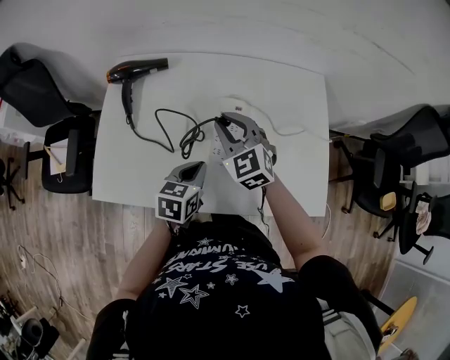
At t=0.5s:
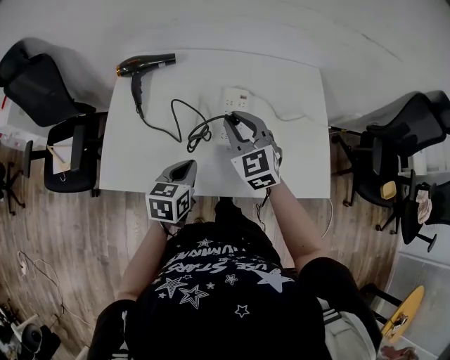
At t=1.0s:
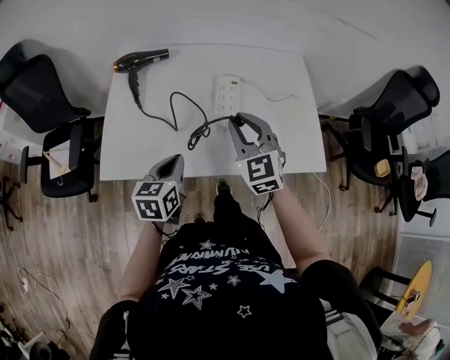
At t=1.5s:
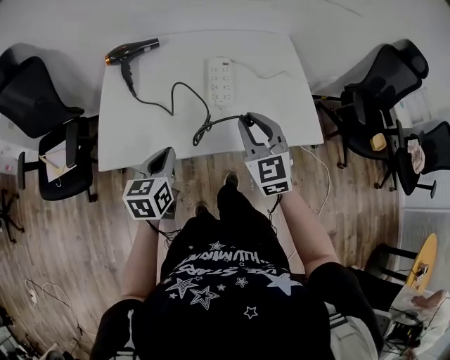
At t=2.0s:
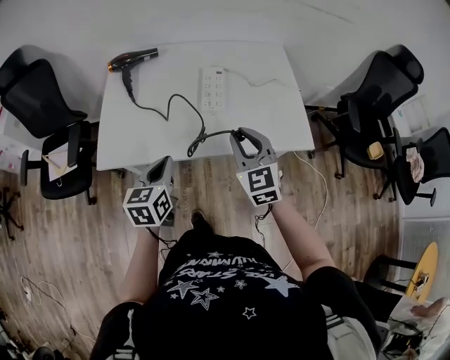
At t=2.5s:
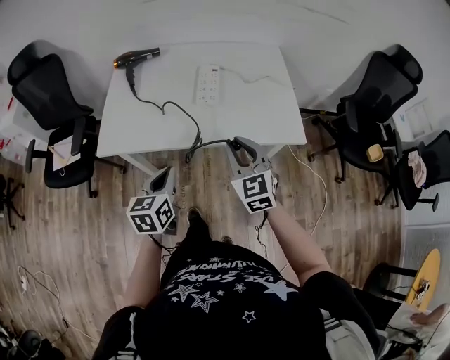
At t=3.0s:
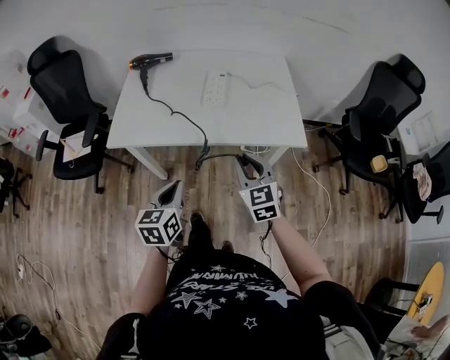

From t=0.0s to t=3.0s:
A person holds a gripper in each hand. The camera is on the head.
From t=0.0s to t=1.5s: The left gripper travels backward and to the left by approximately 20 cm. Meanwhile the right gripper shifts approximately 25 cm backward, and changes its angle by roughly 20 degrees.
From t=1.5s to t=3.0s: Both grippers move backward and to the right, approximately 20 cm.

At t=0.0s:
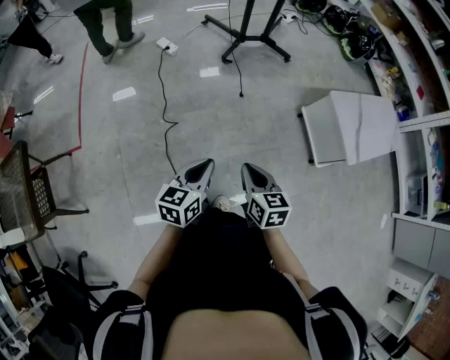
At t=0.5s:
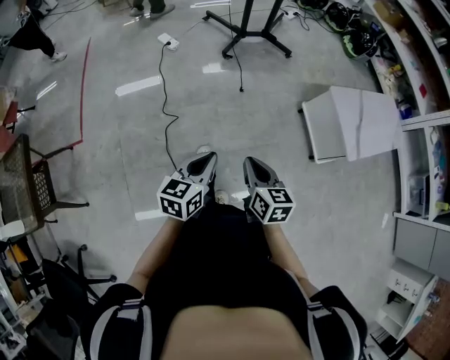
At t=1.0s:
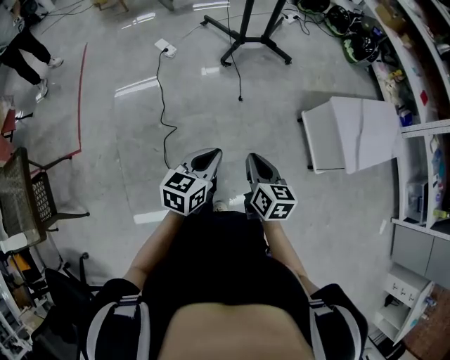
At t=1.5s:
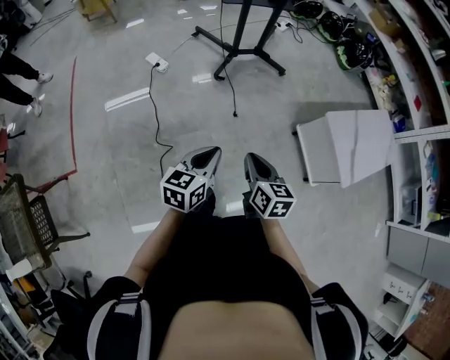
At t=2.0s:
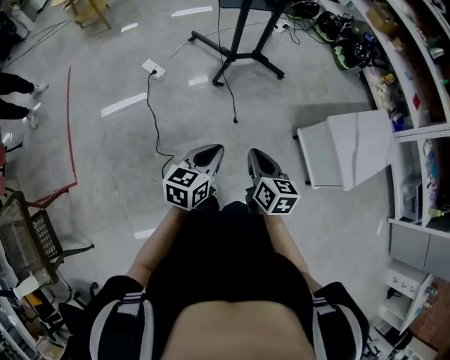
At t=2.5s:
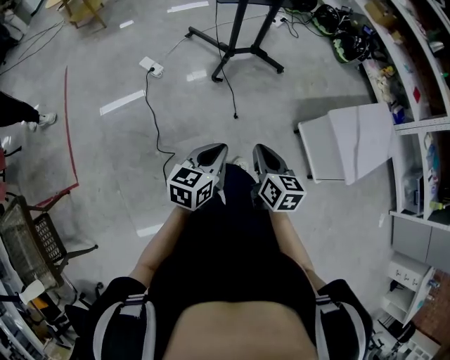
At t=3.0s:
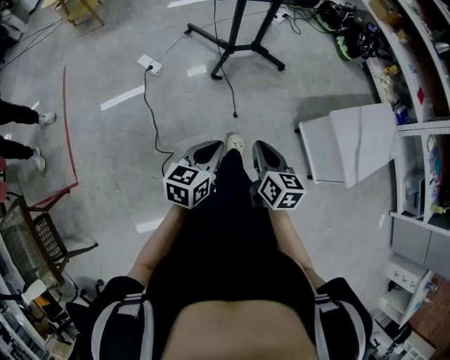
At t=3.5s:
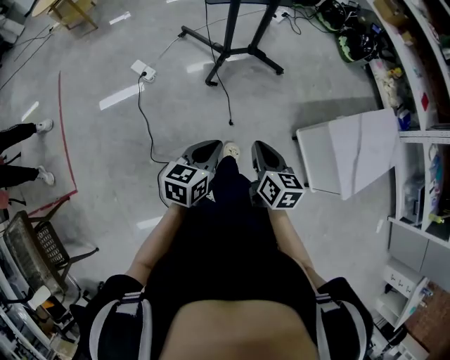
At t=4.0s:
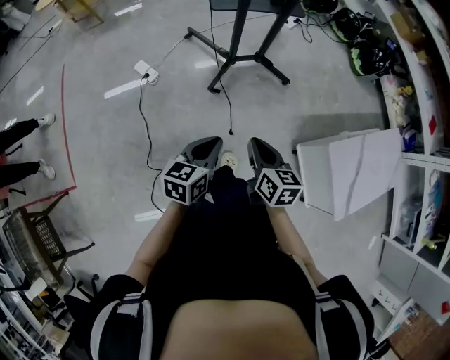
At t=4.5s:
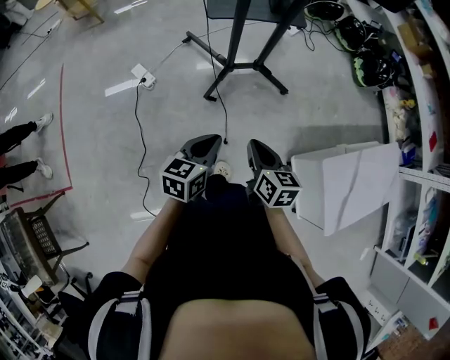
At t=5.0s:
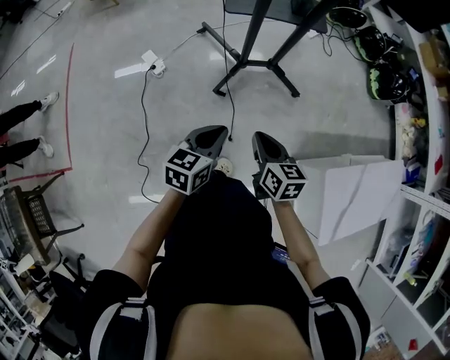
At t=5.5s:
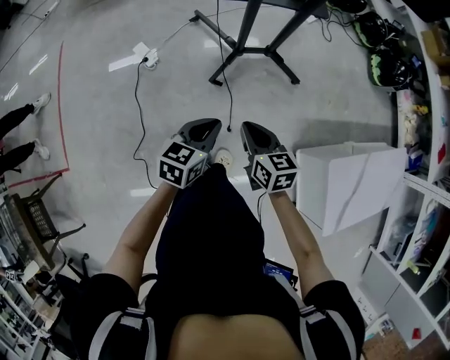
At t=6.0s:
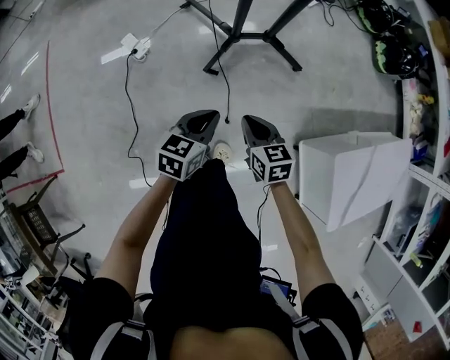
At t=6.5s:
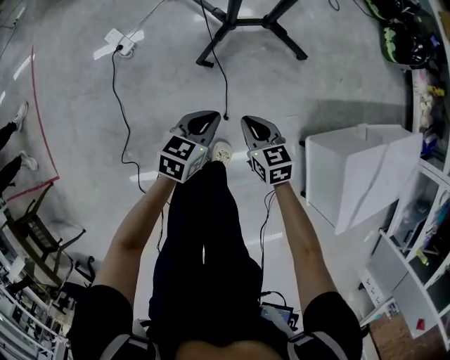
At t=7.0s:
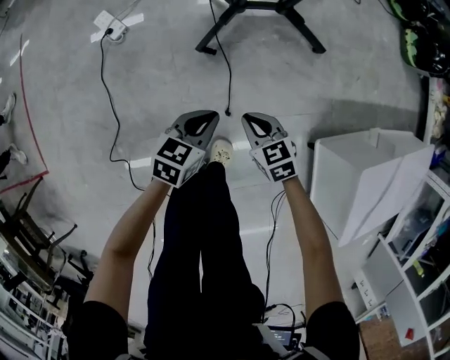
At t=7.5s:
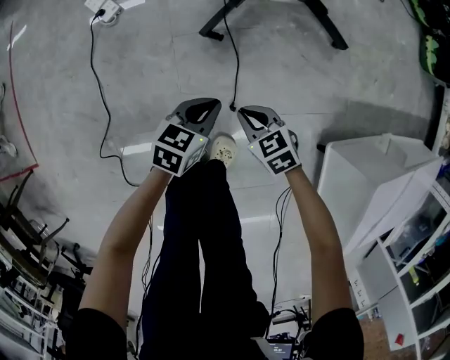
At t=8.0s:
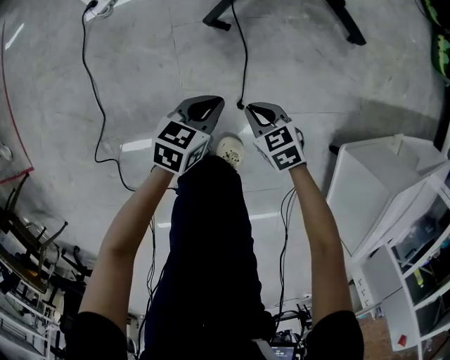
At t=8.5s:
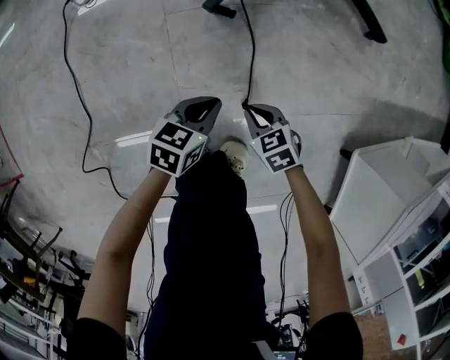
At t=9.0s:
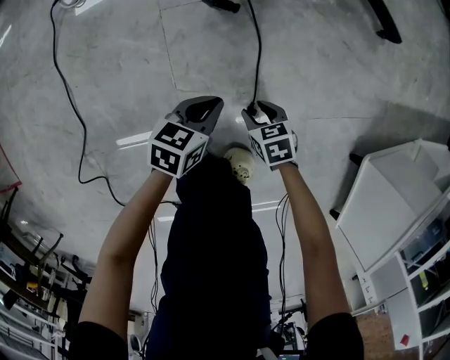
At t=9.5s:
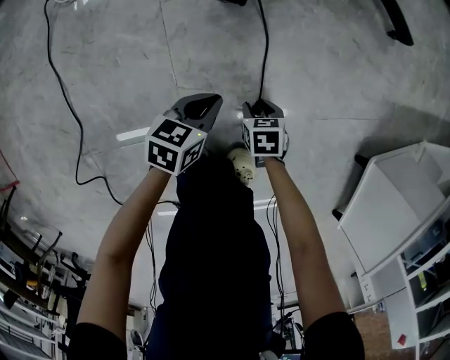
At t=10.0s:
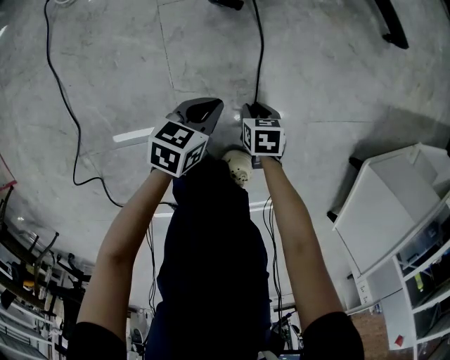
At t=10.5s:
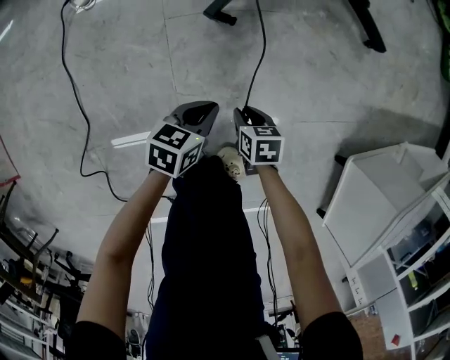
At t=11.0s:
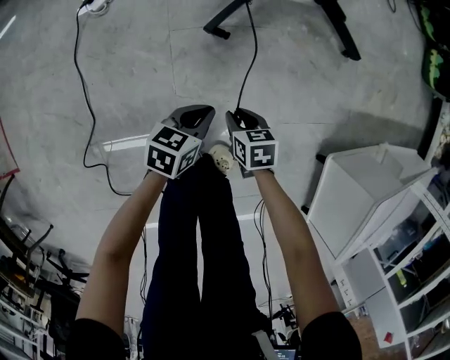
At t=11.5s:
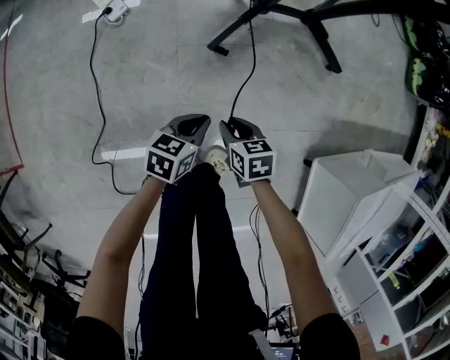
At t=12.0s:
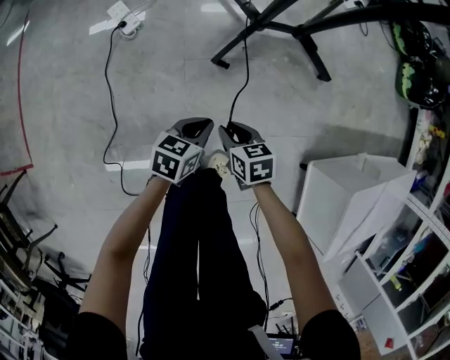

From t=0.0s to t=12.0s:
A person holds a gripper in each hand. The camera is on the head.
From t=0.0s to t=2.0s: The grippers both shift forward by roughly 30 cm.
From t=2.0s to t=4.0s: Both grippers move forward, about 25 cm.
From t=4.0s to t=6.0s: The right gripper goes some 20 cm downward and forward, and swivels roughly 20 degrees; the left gripper moves forward and downward, about 20 cm.
From t=6.0s to t=8.0s: Both grippers travel together downward, roughly 40 cm. The right gripper rotates approximately 30 degrees.
From t=8.0s to t=10.0s: The two grippers go some 20 cm downward. The right gripper swivels about 40 degrees, and opens up.
From t=10.0s to t=12.0s: Both grippers travel together upward, about 40 cm. The right gripper turns by roughly 20 degrees.

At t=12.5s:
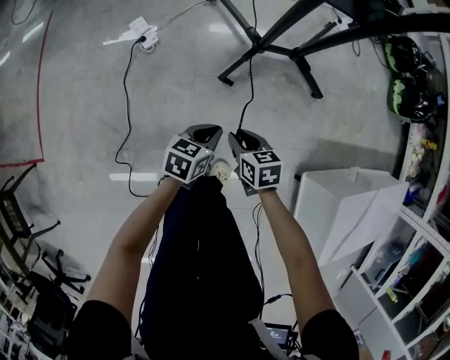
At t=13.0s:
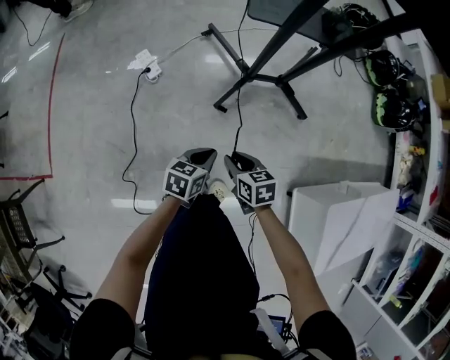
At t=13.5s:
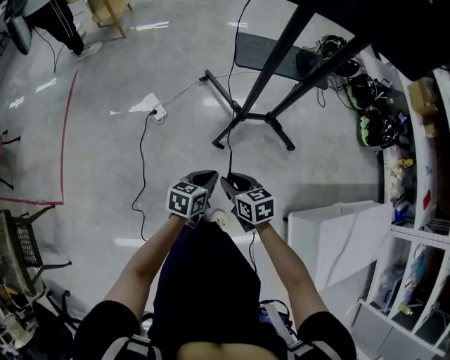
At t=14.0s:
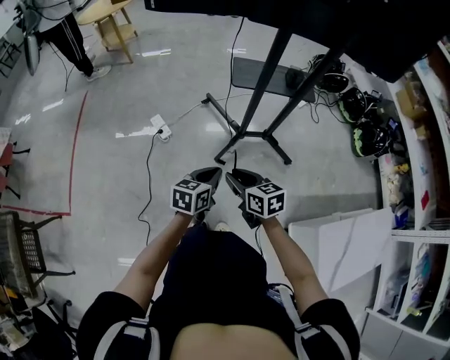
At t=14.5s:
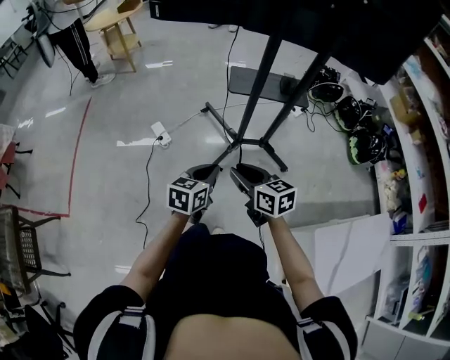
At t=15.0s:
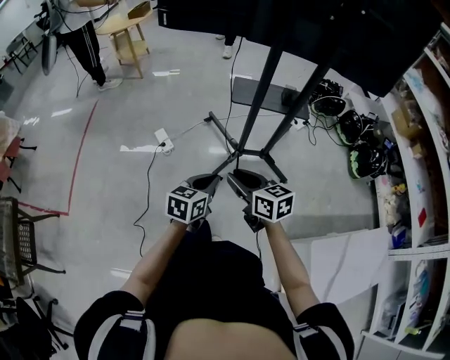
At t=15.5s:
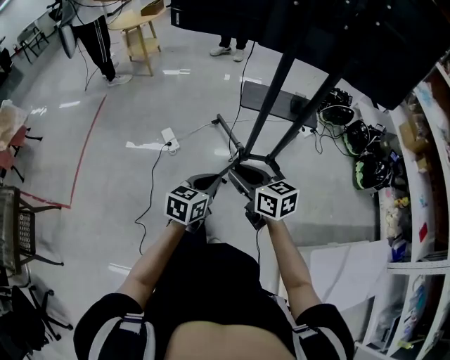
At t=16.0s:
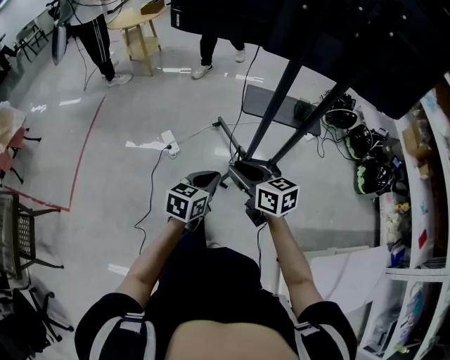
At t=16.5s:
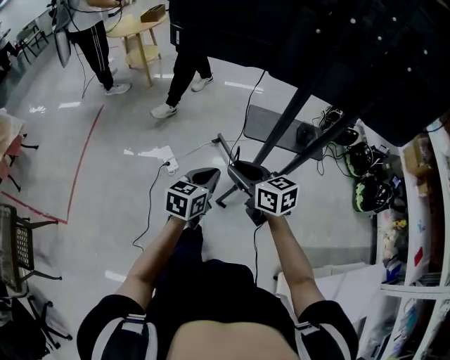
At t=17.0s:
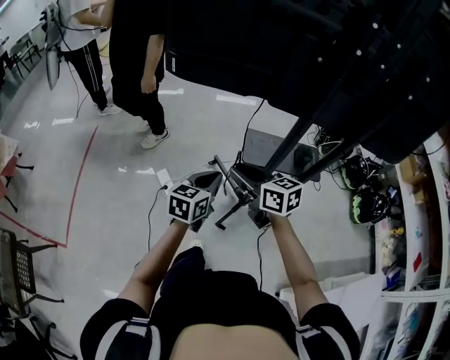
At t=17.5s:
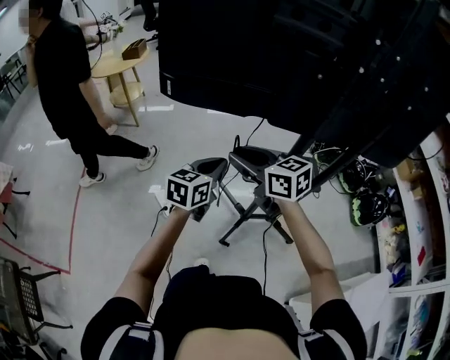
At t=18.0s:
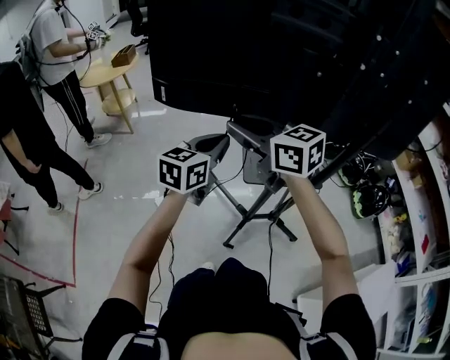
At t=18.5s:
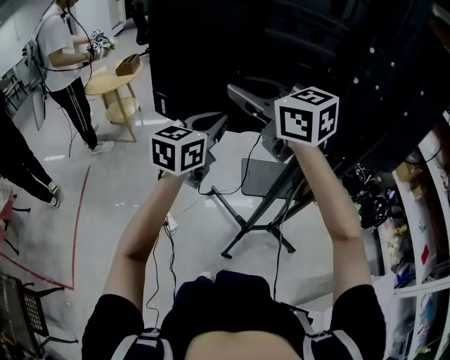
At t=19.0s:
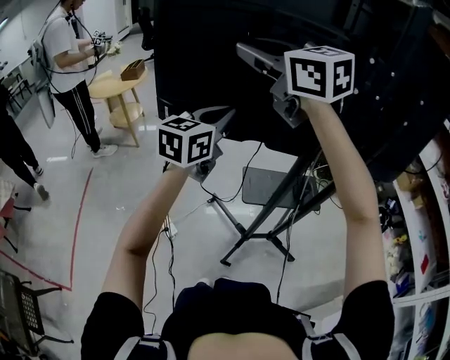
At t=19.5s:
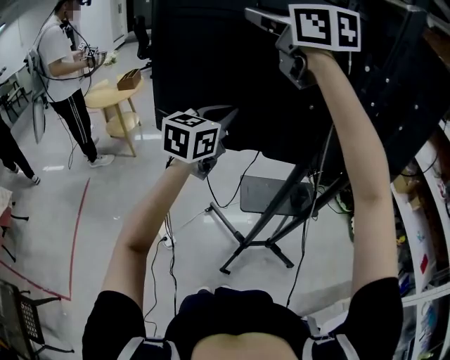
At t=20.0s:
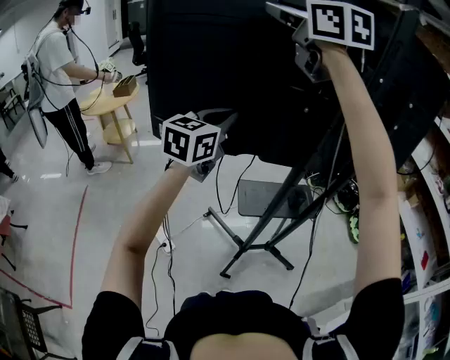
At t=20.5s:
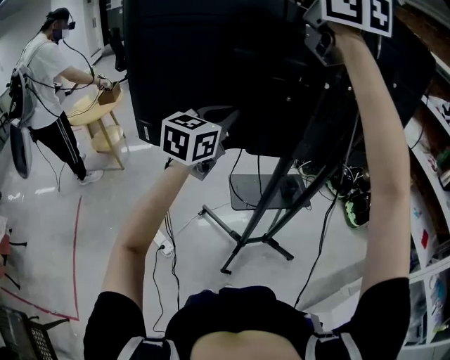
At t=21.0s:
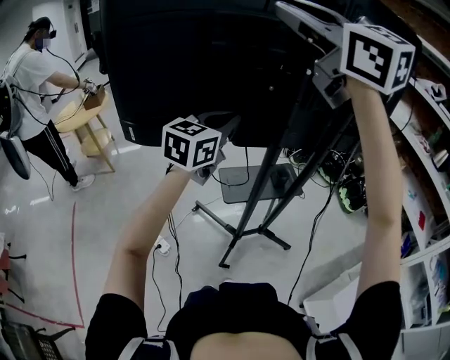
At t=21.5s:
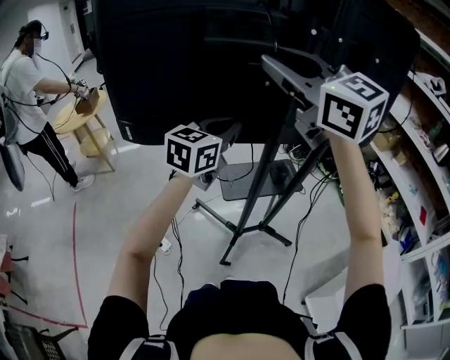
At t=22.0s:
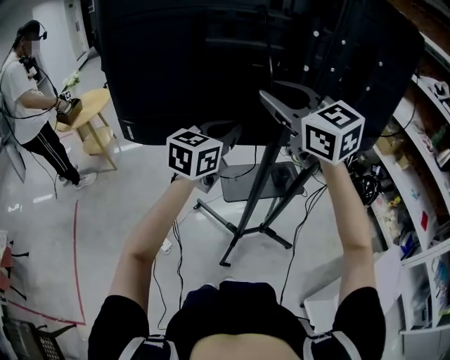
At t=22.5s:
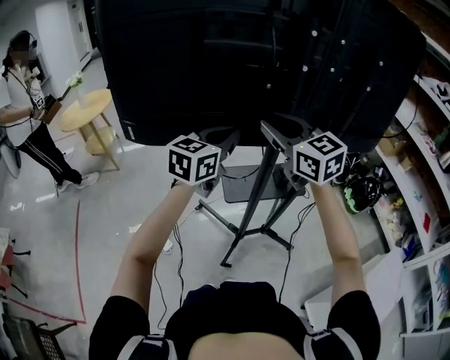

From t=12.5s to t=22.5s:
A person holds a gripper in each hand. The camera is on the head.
From t=12.5s to t=14.5s: Both grippers move upward, approximately 40 cm. The right gripper swivels approximately 30 degrees.
From t=14.5s to t=16.5s: Both grippers move forward, some 20 cm.
From t=16.5s to t=18.5s: The two grippers go some 40 cm upward and forward. The left gripper turns by roughly 30 degrees. The right gripper turns by approximately 30 degrees.
From t=18.5s to t=20.5s: The left gripper moves upward and to the right, about 10 cm. The right gripper travels upward and to the right by approximately 30 cm, and rotates about 30 degrees.
From t=20.5s to t=22.5s: The right gripper is displaced downward by approximately 30 cm; the left gripper goes roughly 10 cm downward and to the right.

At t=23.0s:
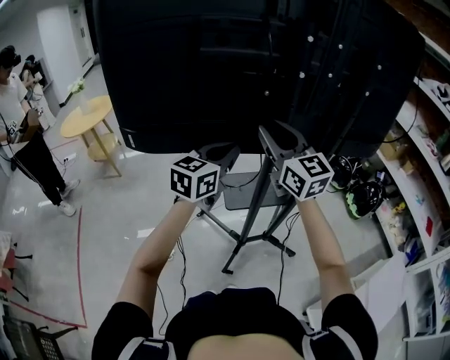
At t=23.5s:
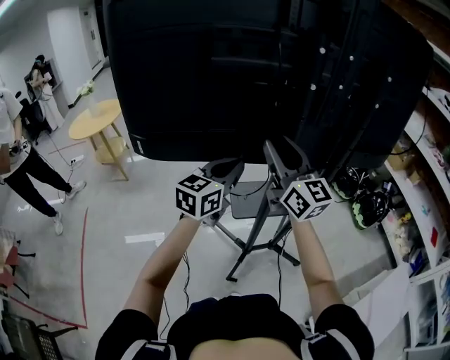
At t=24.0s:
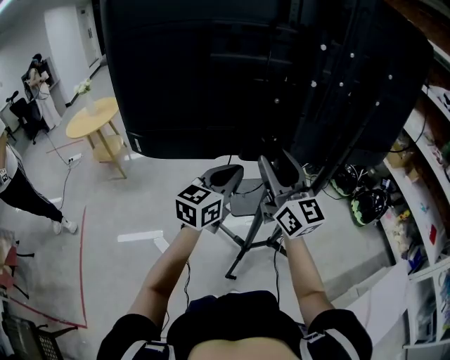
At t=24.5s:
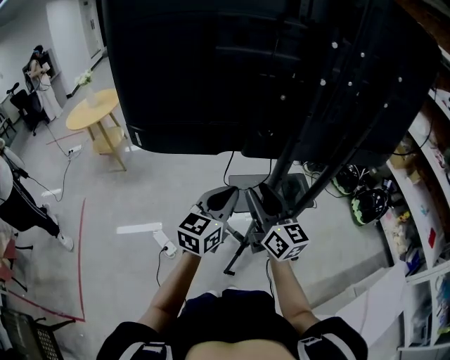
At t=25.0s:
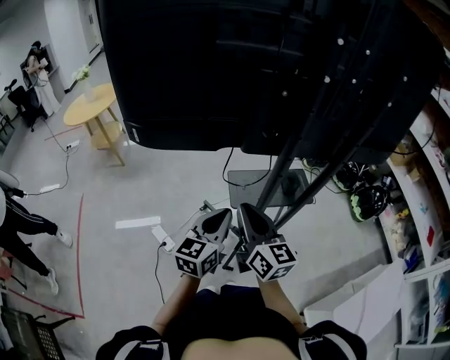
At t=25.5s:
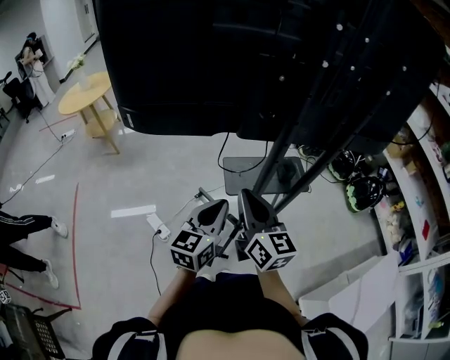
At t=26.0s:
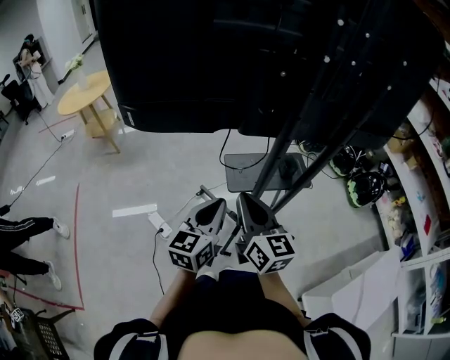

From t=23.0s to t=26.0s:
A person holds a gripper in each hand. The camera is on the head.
From t=23.0s to t=24.5s: Both grippers move downward and backward, about 15 cm. The right gripper turns by roughly 20 degrees.
From t=24.5s to t=26.0s: The left gripper moves backward and downward, about 10 cm, while the right gripper heads backward, covering about 5 cm, and closes.
